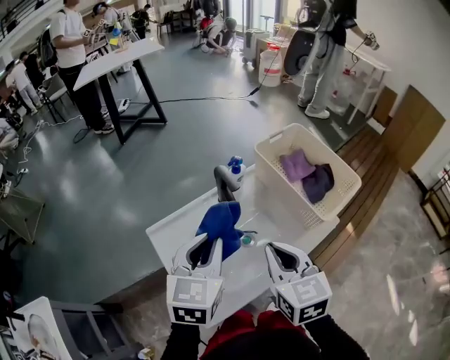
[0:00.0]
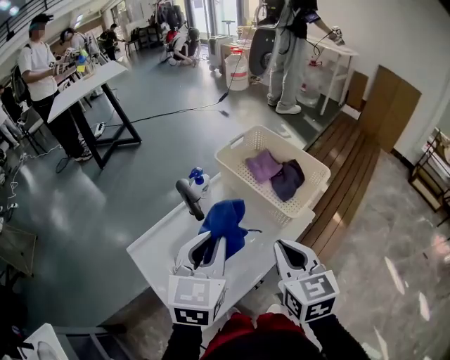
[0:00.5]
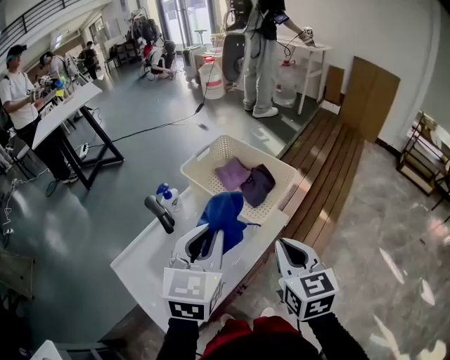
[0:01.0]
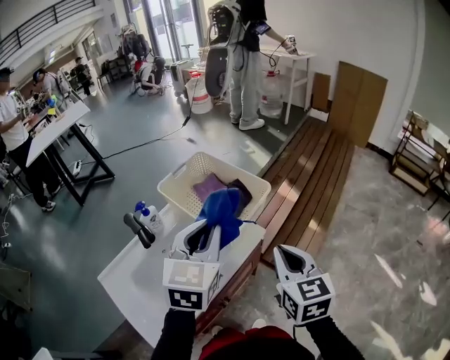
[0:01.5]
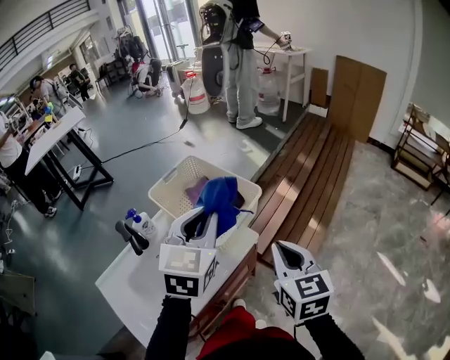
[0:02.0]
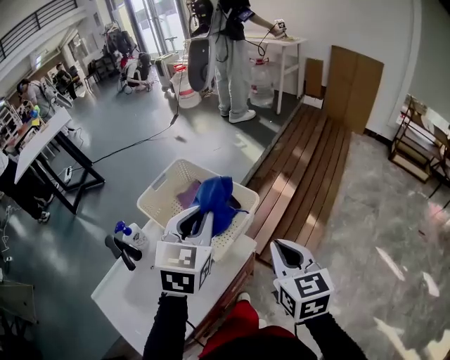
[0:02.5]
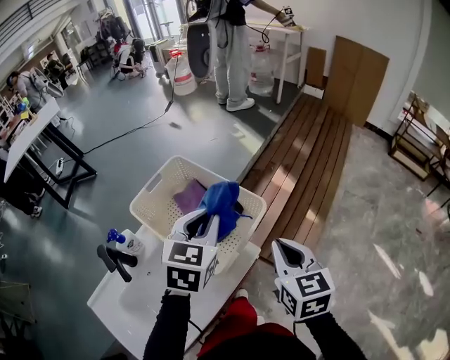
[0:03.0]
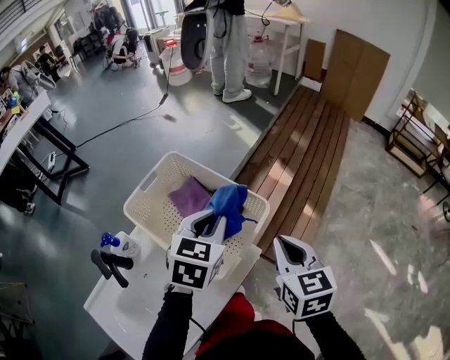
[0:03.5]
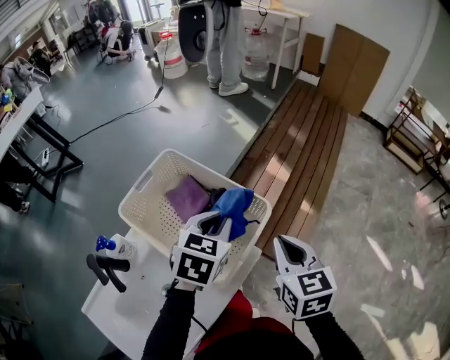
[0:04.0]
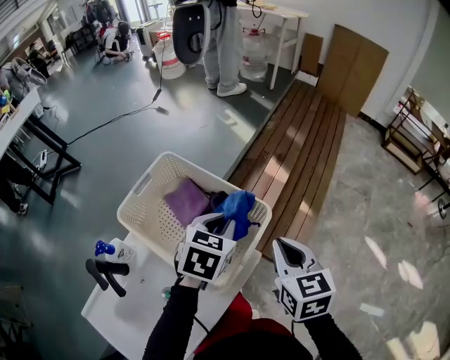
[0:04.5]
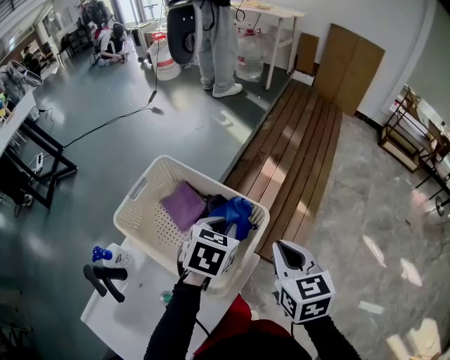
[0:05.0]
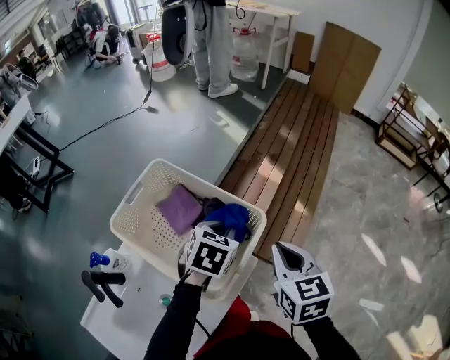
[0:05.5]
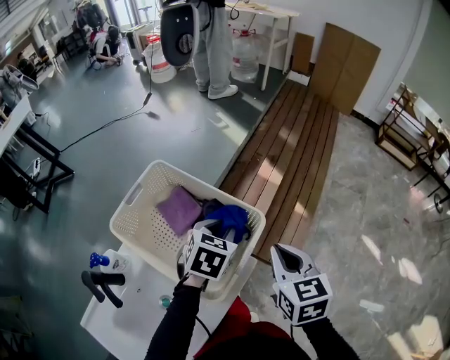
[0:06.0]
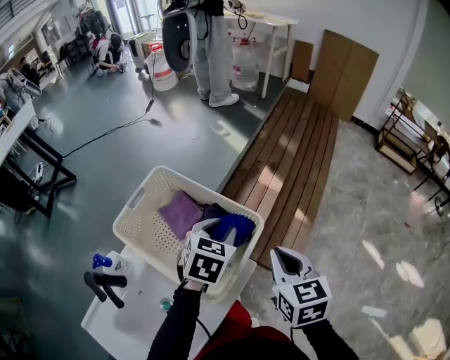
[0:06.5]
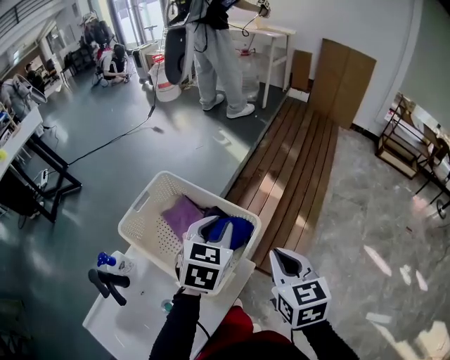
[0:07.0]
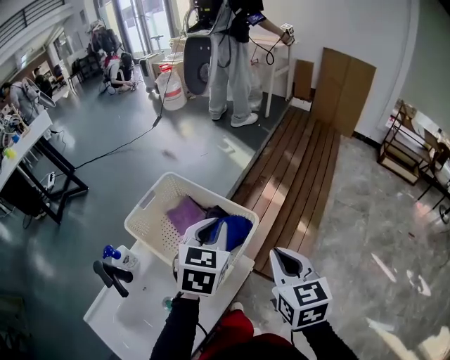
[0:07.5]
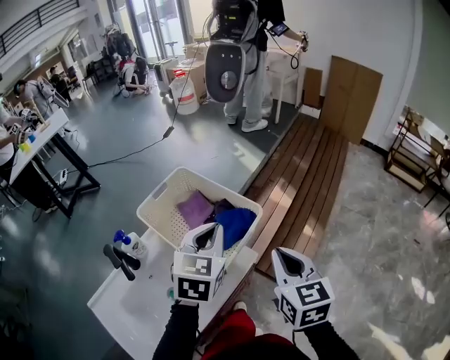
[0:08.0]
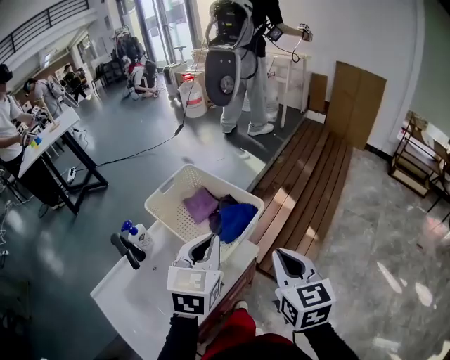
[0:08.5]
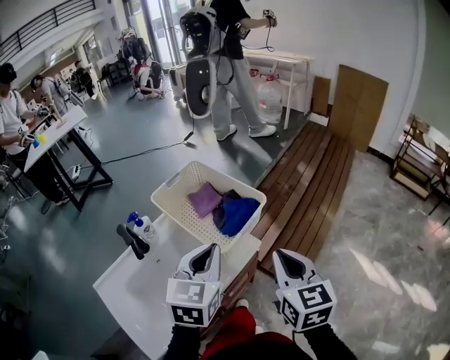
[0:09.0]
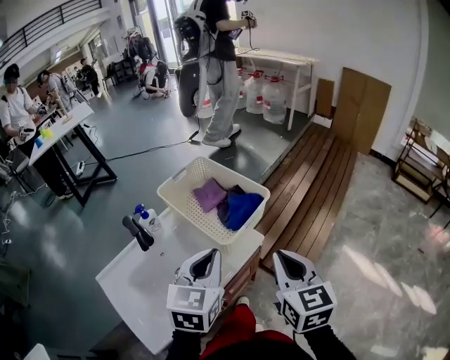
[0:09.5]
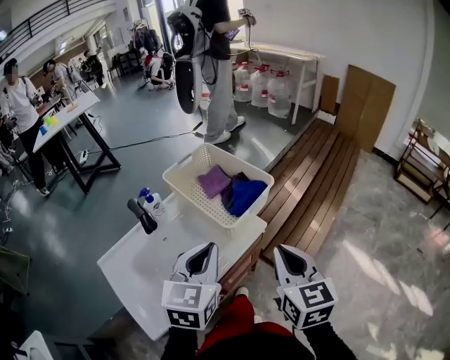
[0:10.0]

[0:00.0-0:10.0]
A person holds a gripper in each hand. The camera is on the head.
0:00.0 to 0:02.0: The left gripper shifts approximately 35 cm to the right and forward, and turns by some 20 degrees; the right gripper is displaced to the right by roughly 35 cm, and swivels some 20 degrees.
0:02.0 to 0:04.0: The right gripper goes roughly 15 cm forward and downward, while the left gripper goes roughly 20 cm downward and forward, and changes its angle by some 30 degrees.
0:04.0 to 0:06.0: The left gripper heads downward, covering approximately 5 cm.
0:06.0 to 0:08.0: The left gripper travels upward and backward by roughly 15 cm, rotates about 30 degrees, and closes up. Meanwhile the right gripper shifts about 10 cm backward and upward.
0:08.0 to 0:10.0: The right gripper heads backward, covering about 10 cm; the left gripper travels backward by about 20 cm.

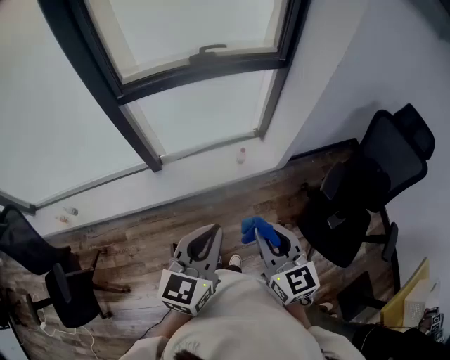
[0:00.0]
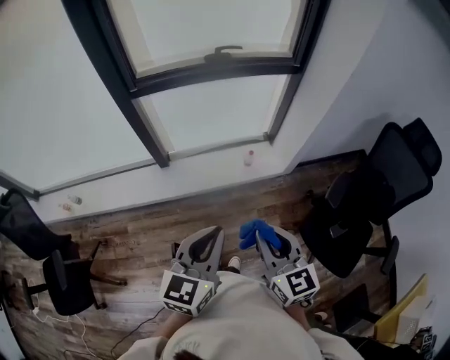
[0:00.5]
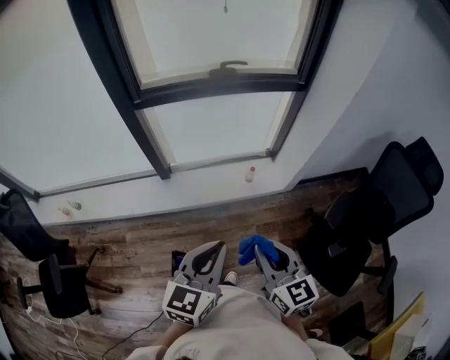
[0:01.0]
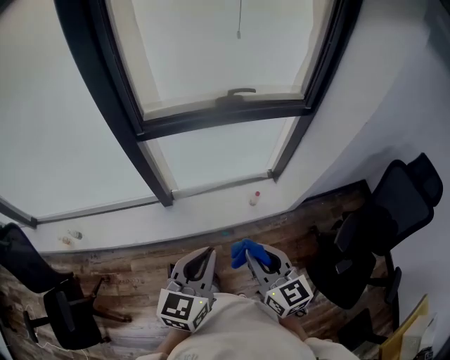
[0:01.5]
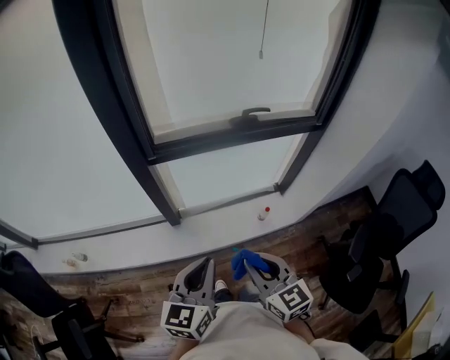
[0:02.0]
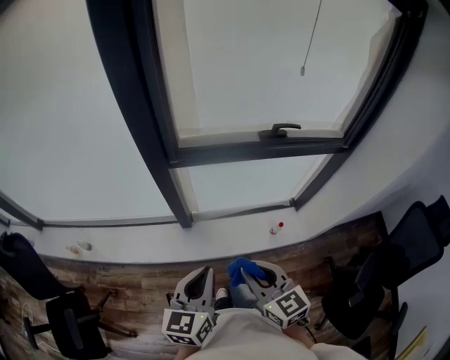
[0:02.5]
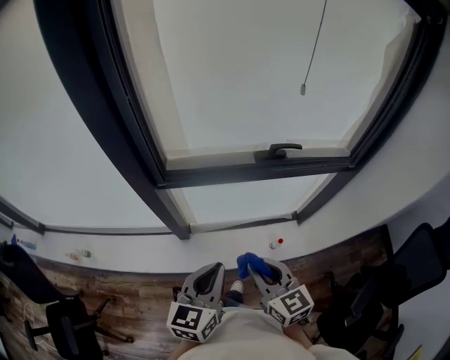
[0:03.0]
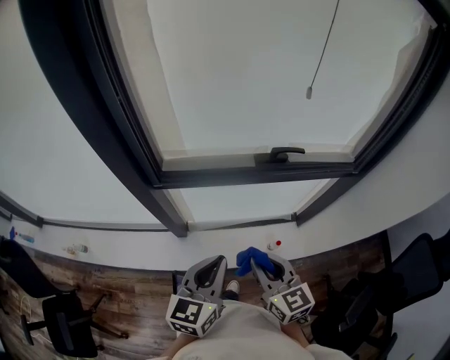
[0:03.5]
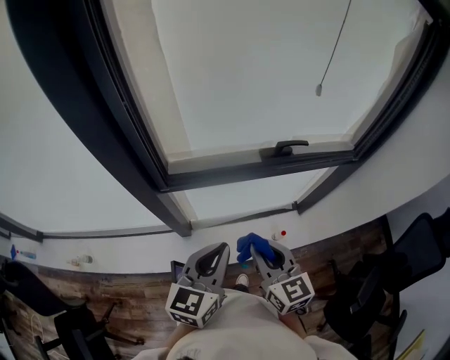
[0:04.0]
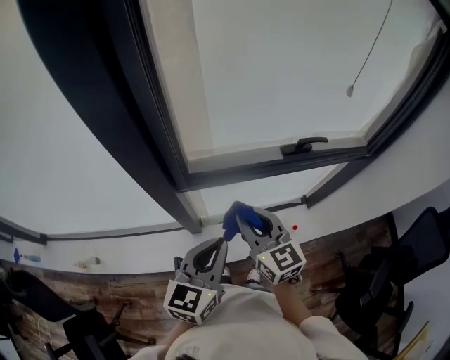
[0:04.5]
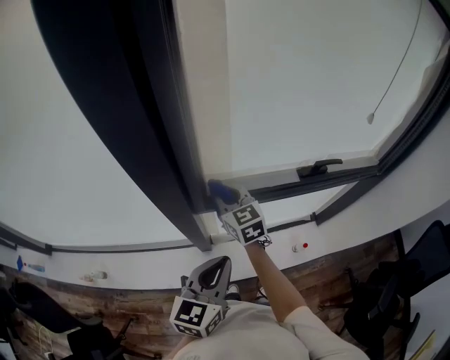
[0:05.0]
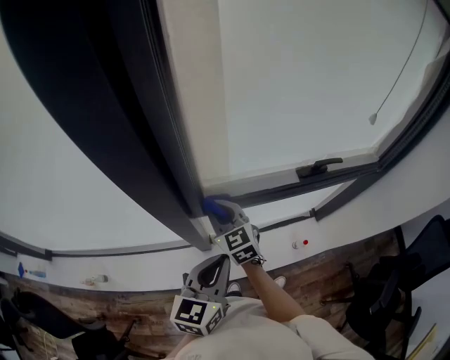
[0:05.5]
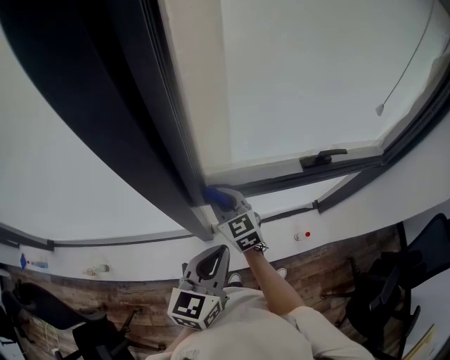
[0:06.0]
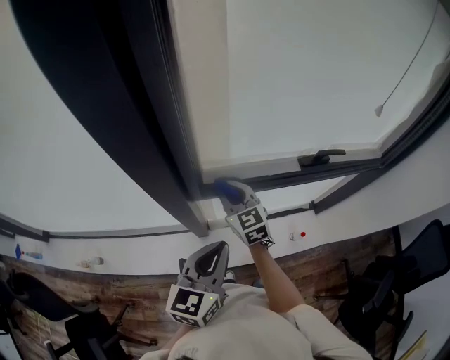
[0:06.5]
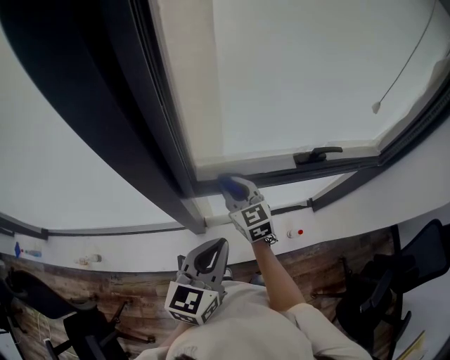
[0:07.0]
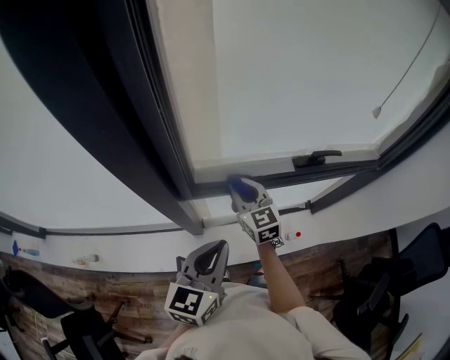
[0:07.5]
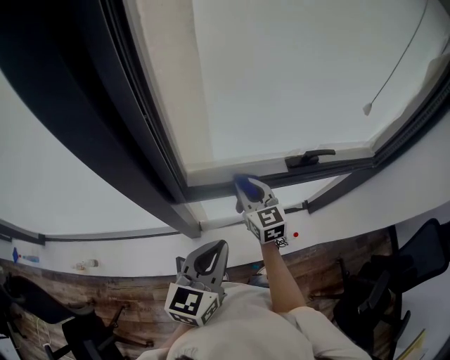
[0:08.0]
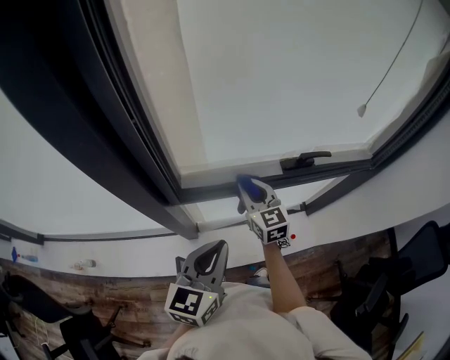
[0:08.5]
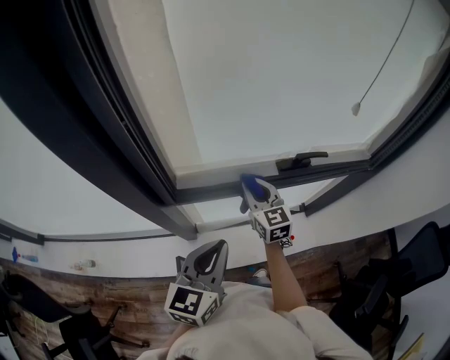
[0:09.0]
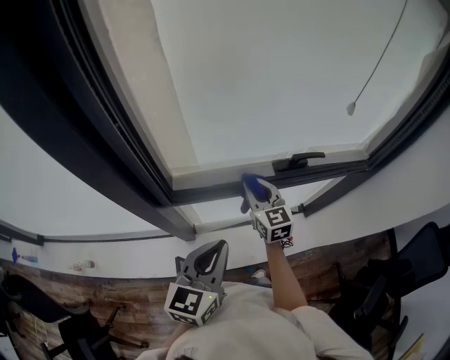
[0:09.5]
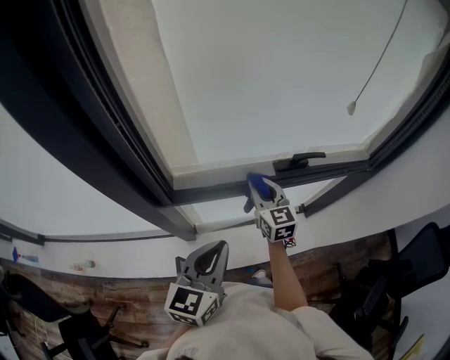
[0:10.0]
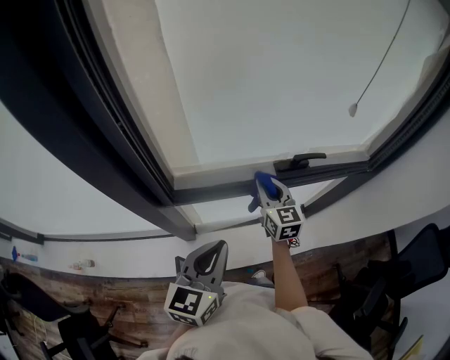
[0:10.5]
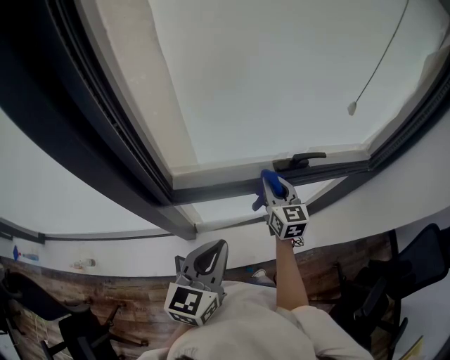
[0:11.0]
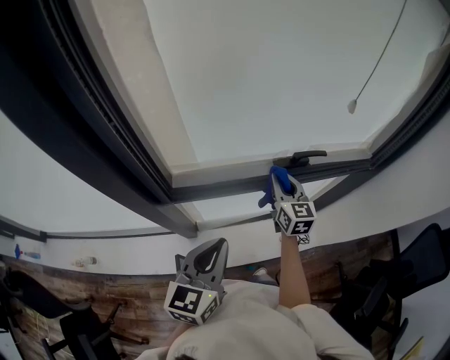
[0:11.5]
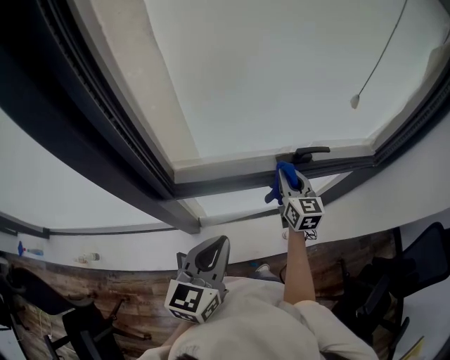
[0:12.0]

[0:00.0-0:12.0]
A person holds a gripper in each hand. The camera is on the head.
0:00.0 to 0:02.0: Both grippers move forward and to the left, about 25 cm.
0:02.0 to 0:04.0: Both grippers travel together forward, about 20 cm.
0:04.0 to 0:06.0: The left gripper goes about 15 cm to the left and forward, while the right gripper heads to the left and forward, covering some 30 cm.
0:06.0 to 0:08.0: The right gripper travels to the right by roughly 15 cm. Meanwhile the left gripper moves to the right, roughly 5 cm.
0:08.0 to 0:10.0: The right gripper travels to the right by roughly 10 cm.
0:10.0 to 0:12.0: The right gripper shifts roughly 10 cm to the right.

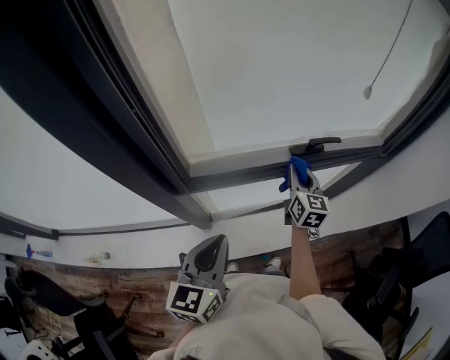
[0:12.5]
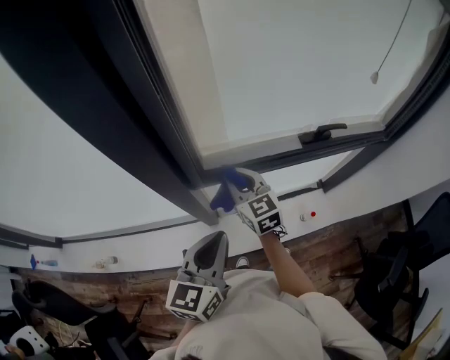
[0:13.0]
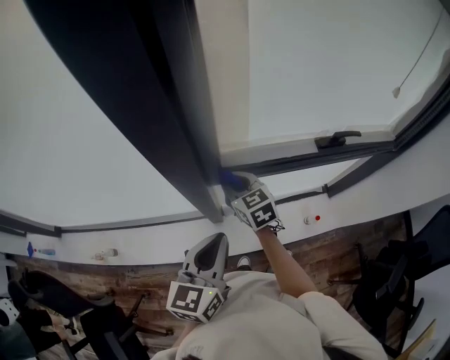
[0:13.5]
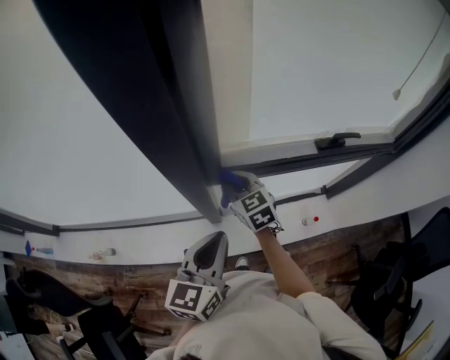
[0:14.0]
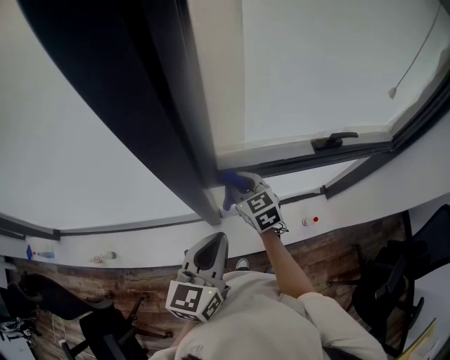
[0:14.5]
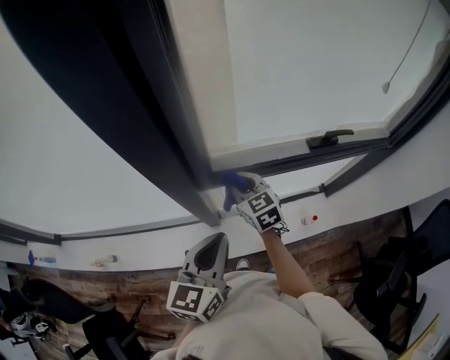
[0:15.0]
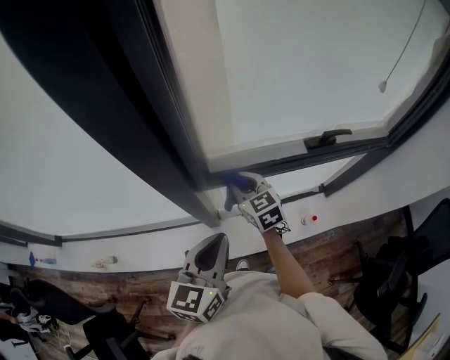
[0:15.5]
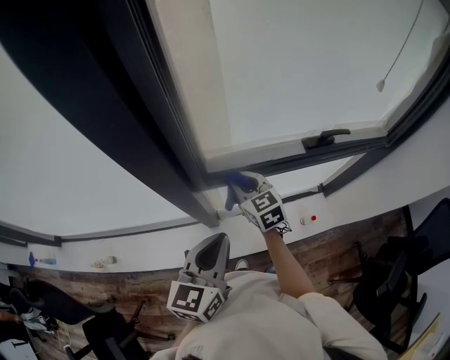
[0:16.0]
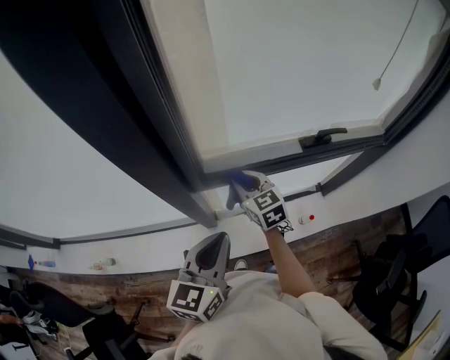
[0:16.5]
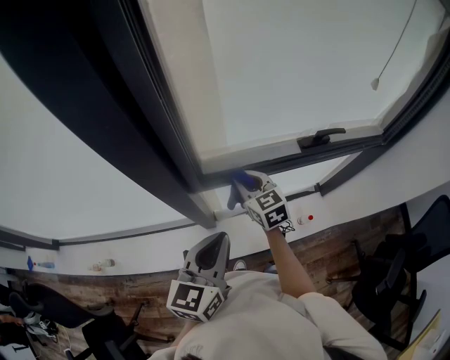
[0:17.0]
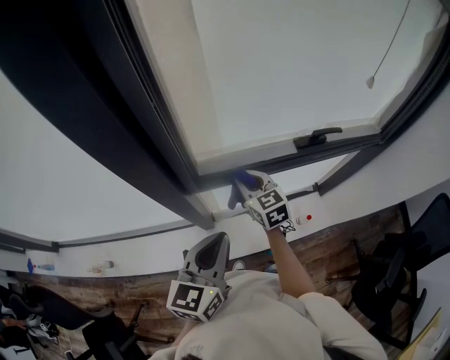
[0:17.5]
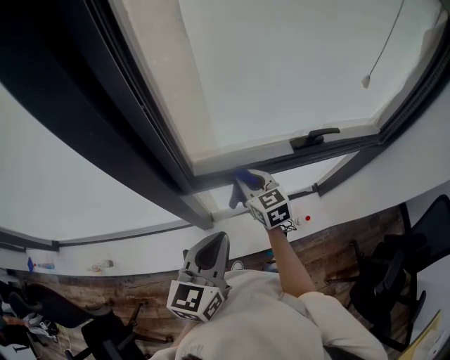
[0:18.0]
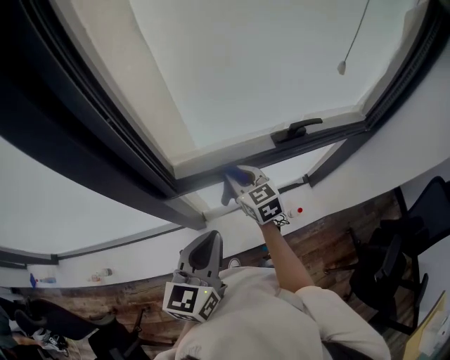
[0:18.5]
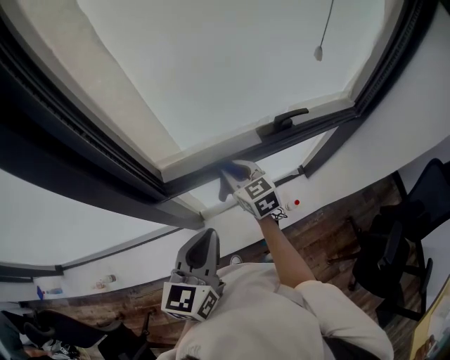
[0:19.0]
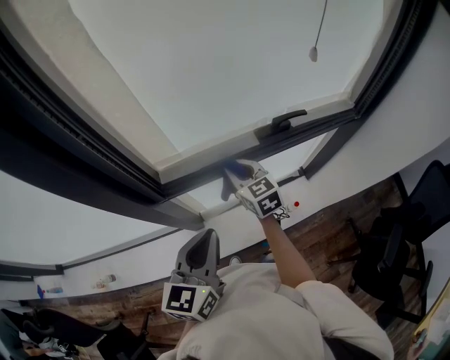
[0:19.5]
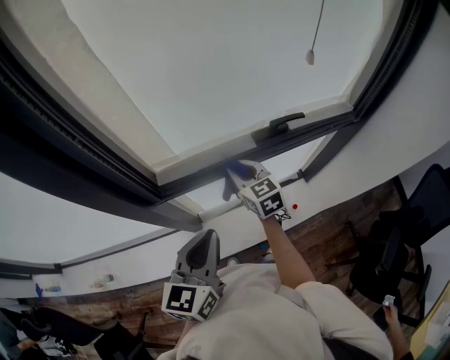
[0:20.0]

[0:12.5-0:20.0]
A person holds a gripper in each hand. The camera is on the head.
0:12.5 to 0:14.5: The right gripper is displaced to the left by roughly 30 cm, and turns by roughly 40 degrees, while the left gripper shifts some 10 cm to the left.
0:14.5 to 0:16.5: The right gripper heads to the right, covering approximately 5 cm.
0:16.5 to 0:18.0: The grippers make only small movements.
0:18.0 to 0:20.0: The two grippers go some 10 cm to the right.
